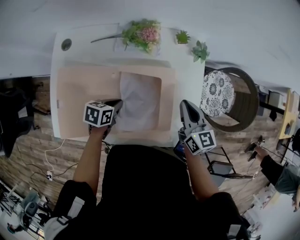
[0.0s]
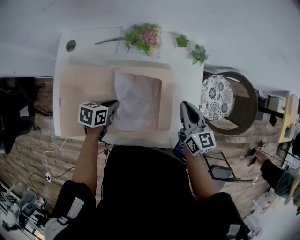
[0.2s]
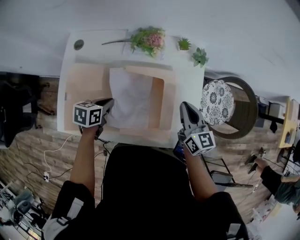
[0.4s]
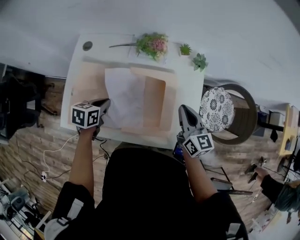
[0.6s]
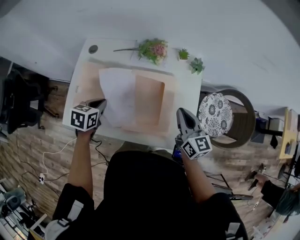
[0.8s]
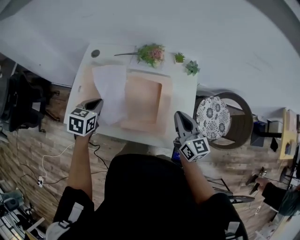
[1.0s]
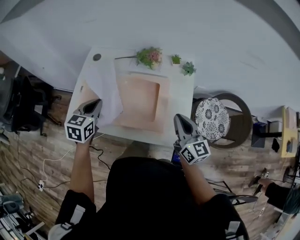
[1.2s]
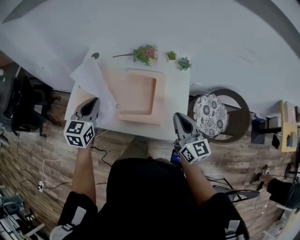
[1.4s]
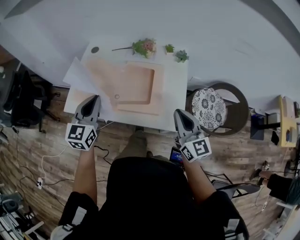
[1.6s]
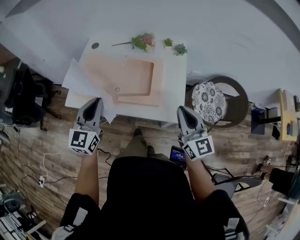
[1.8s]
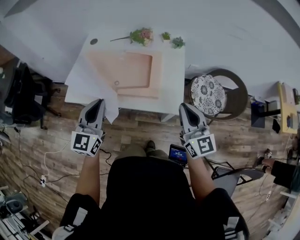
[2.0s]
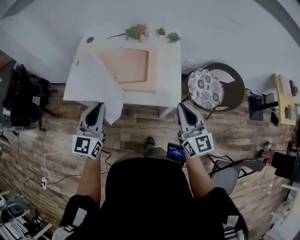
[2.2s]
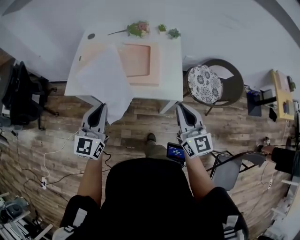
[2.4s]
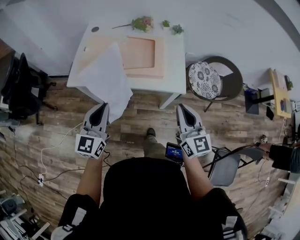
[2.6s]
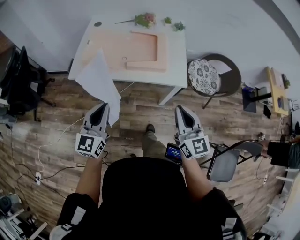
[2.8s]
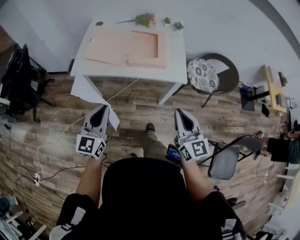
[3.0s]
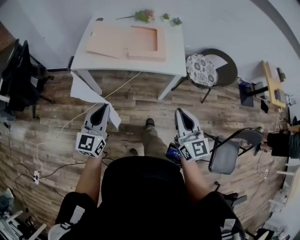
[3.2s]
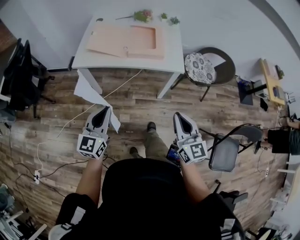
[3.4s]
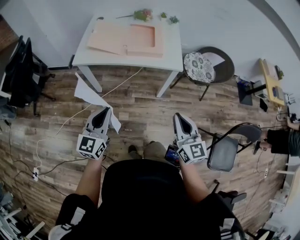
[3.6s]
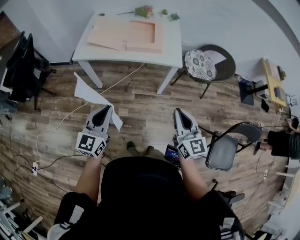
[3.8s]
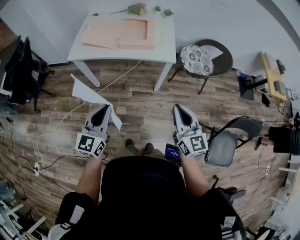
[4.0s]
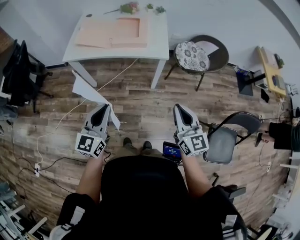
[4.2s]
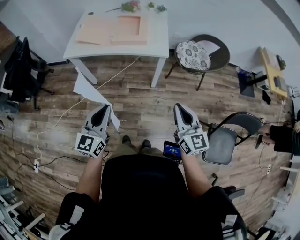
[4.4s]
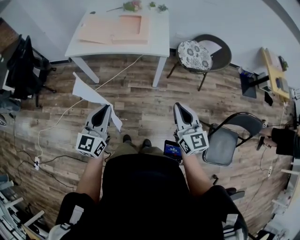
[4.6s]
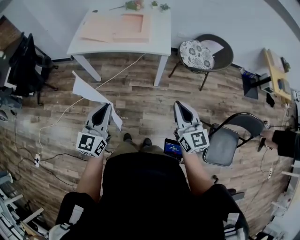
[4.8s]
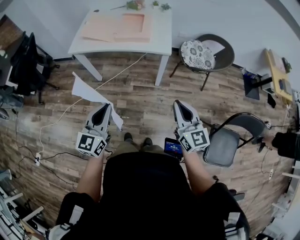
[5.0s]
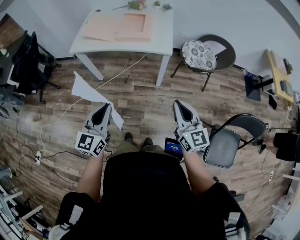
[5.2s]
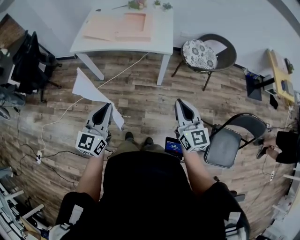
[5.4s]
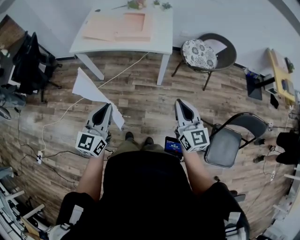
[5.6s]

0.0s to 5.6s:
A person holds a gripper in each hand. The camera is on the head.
0.0s to 1.4s: The left gripper moves upward, roughly 25 cm, and tips its fingers upward by approximately 30 degrees. The right gripper shifts by some 20 cm, and swivels approximately 20 degrees.
1.4s to 2.8s: Both grippers travel together backward, roughly 30 cm. The left gripper rotates approximately 20 degrees.
2.8s to 4.2s: Both grippers move backward and to the right, roughly 20 cm.
4.2s to 5.6s: The left gripper is displaced backward by about 5 cm.

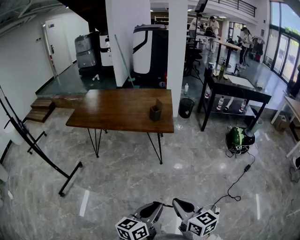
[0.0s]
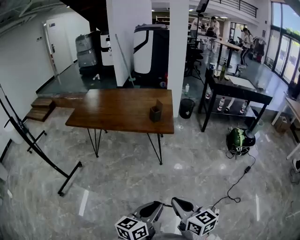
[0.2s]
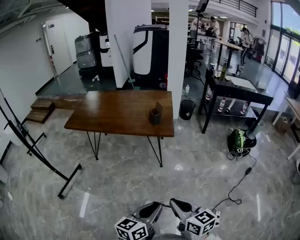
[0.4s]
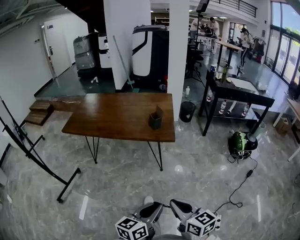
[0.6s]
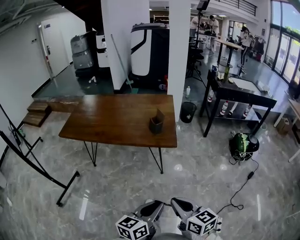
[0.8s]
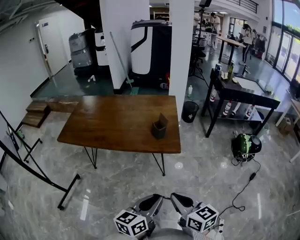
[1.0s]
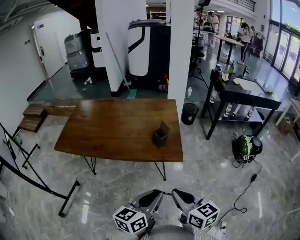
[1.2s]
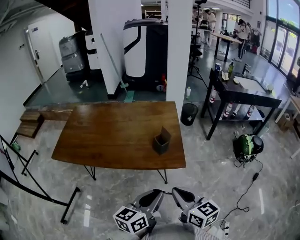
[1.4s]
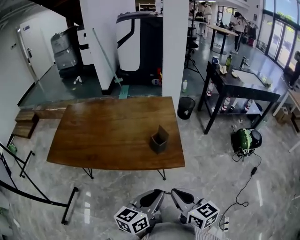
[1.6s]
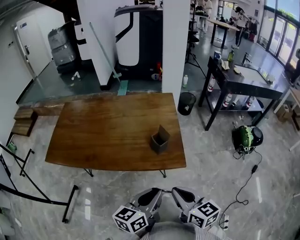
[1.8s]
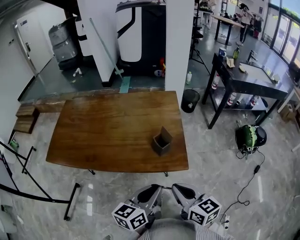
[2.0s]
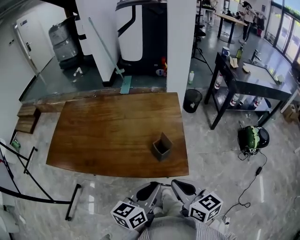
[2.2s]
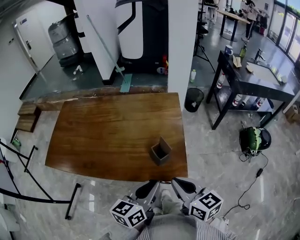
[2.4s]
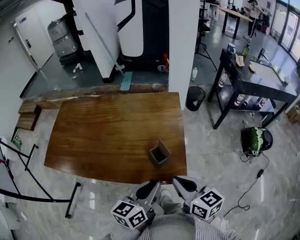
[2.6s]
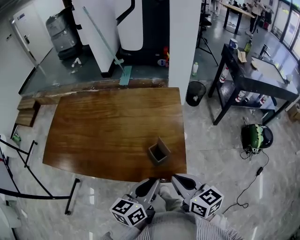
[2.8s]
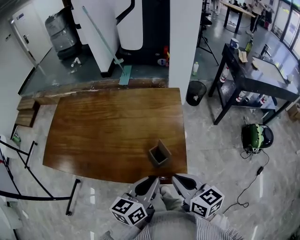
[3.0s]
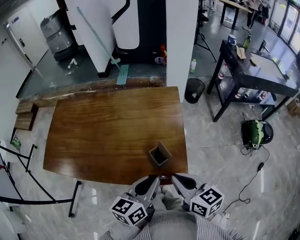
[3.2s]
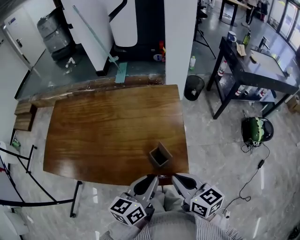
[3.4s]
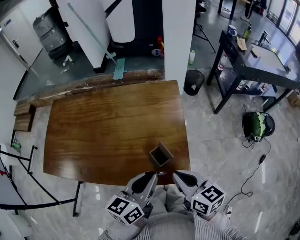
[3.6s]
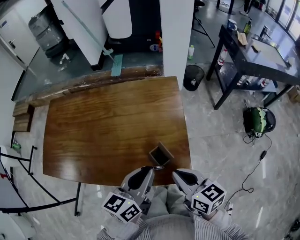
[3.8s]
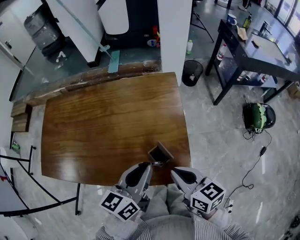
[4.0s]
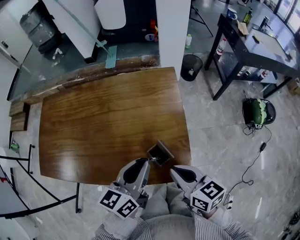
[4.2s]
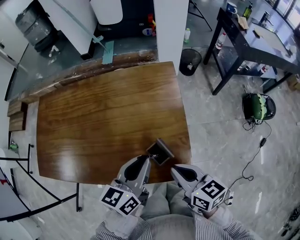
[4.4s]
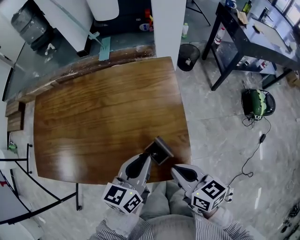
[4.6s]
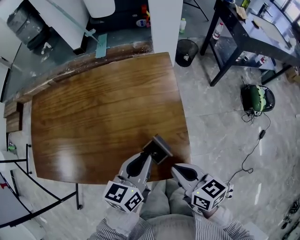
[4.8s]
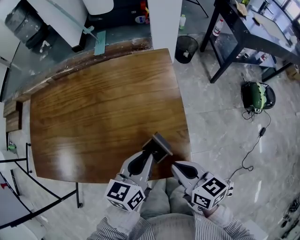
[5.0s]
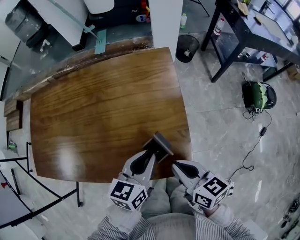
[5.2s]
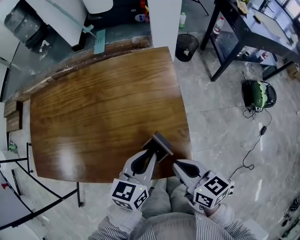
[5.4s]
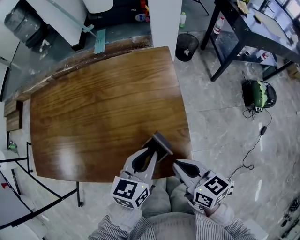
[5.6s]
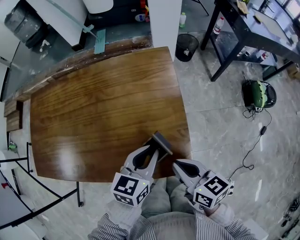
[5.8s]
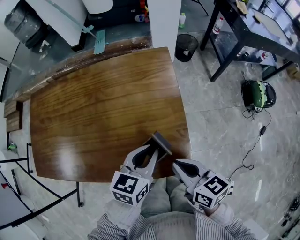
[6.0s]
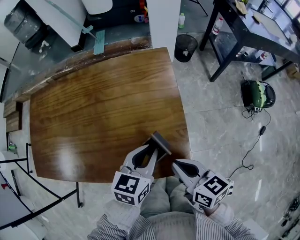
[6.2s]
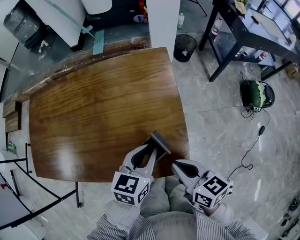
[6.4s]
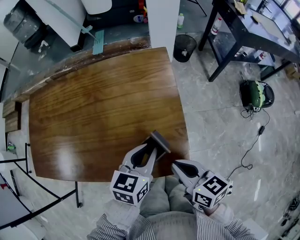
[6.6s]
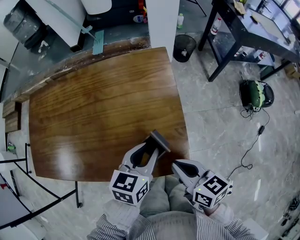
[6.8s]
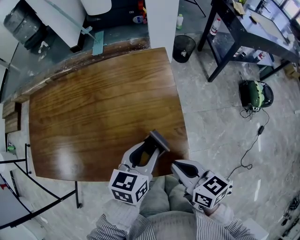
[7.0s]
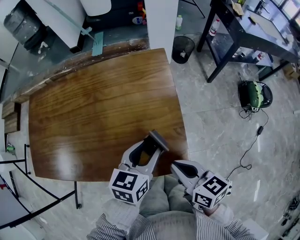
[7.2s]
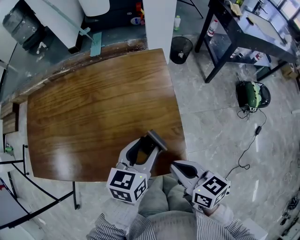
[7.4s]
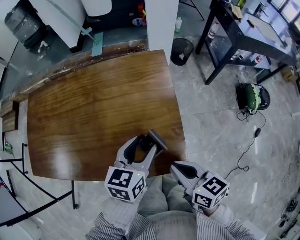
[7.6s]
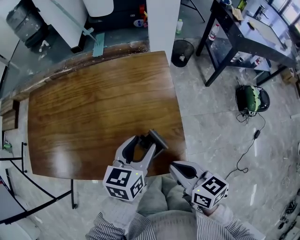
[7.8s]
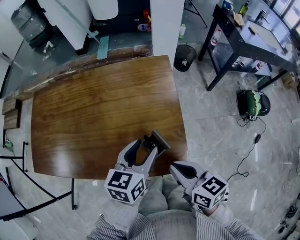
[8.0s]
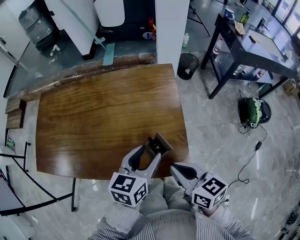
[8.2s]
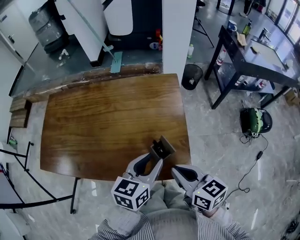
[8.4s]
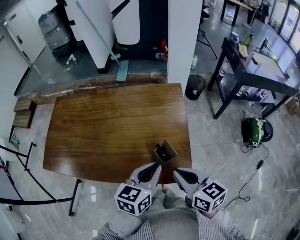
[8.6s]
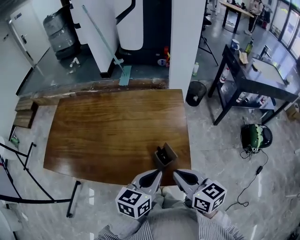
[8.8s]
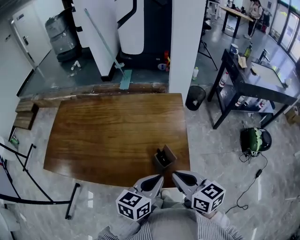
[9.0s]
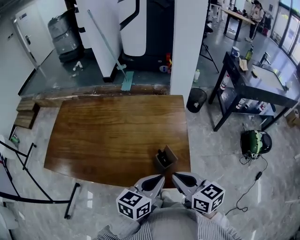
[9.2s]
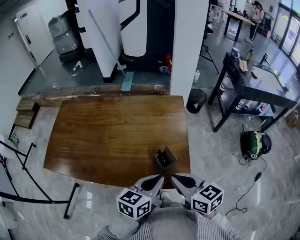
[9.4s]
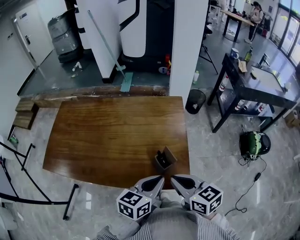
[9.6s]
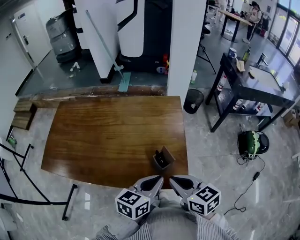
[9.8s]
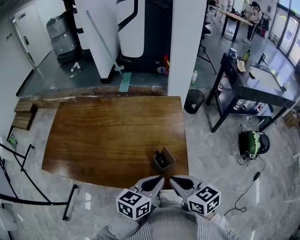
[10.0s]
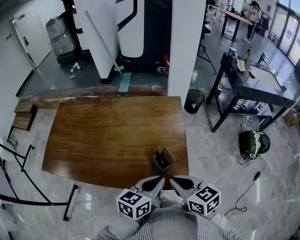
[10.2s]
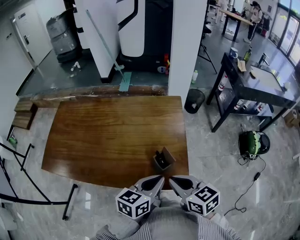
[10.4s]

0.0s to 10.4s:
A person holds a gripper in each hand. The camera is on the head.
0.0s to 1.4s: Both grippers travel together forward, approximately 35 cm.
1.4s to 3.0s: Both grippers move forward, some 20 cm.
3.0s to 4.4s: The right gripper goes about 10 cm downward and forward. The left gripper heads forward, covering approximately 10 cm.
4.4s to 6.0s: The left gripper shifts roughly 5 cm downward, and turns by about 20 degrees.
6.0s to 7.4s: The left gripper opens.
7.4s to 9.0s: The right gripper moves upward, some 10 cm; the left gripper shifts some 10 cm backward and upward, and closes.
9.0s to 10.4s: The grippers make only small movements.

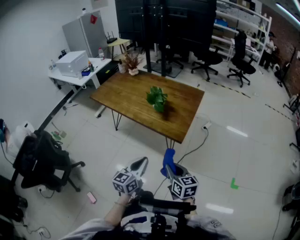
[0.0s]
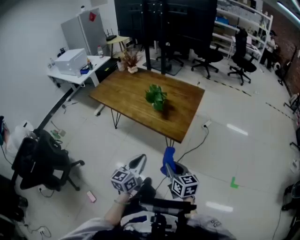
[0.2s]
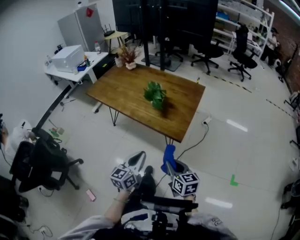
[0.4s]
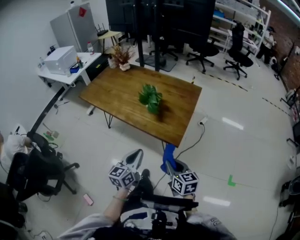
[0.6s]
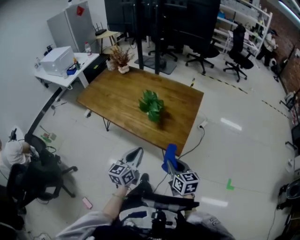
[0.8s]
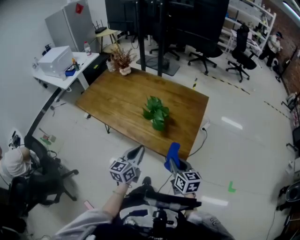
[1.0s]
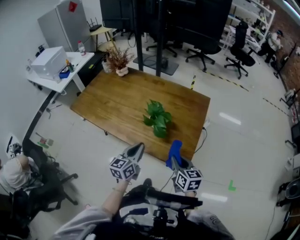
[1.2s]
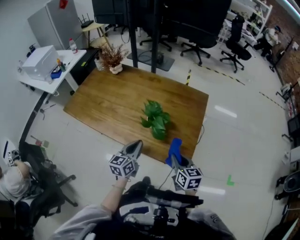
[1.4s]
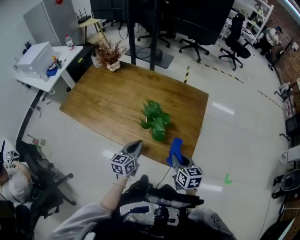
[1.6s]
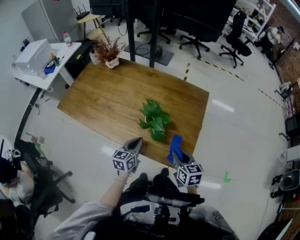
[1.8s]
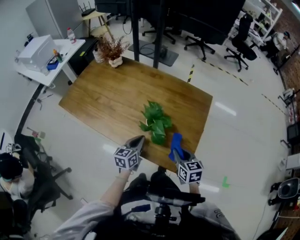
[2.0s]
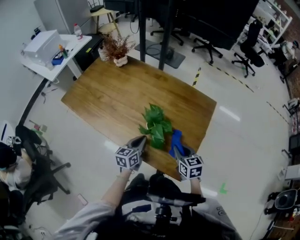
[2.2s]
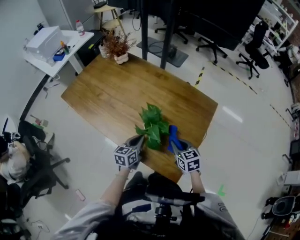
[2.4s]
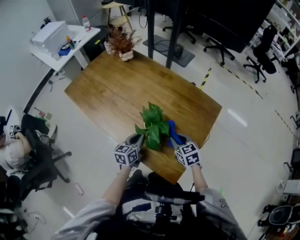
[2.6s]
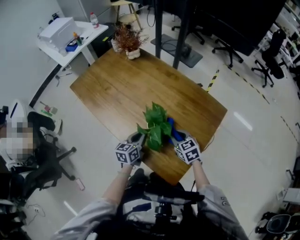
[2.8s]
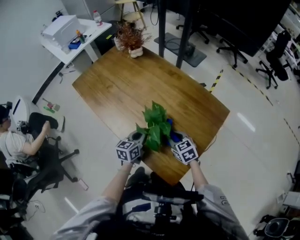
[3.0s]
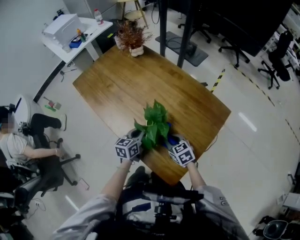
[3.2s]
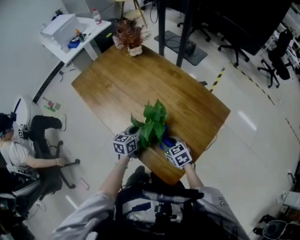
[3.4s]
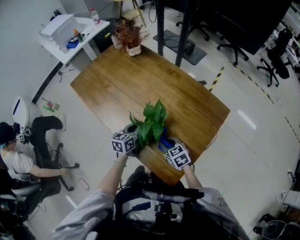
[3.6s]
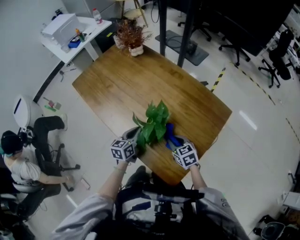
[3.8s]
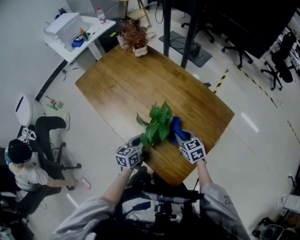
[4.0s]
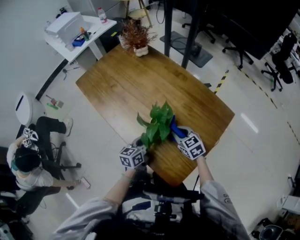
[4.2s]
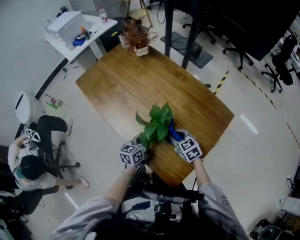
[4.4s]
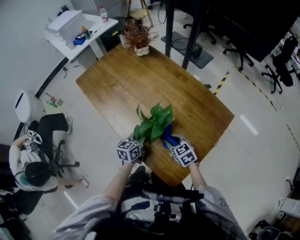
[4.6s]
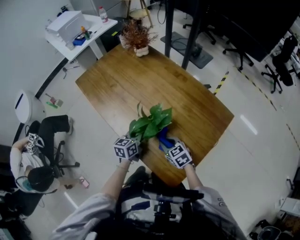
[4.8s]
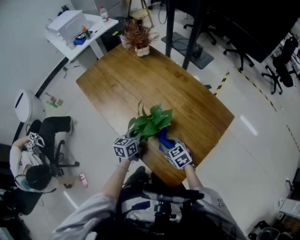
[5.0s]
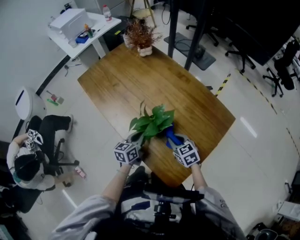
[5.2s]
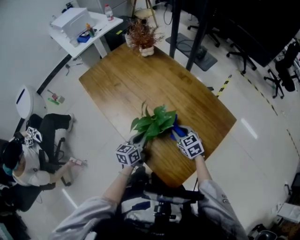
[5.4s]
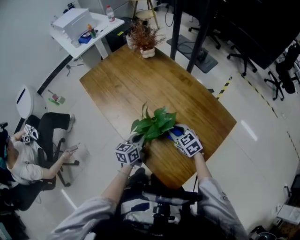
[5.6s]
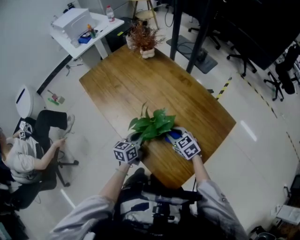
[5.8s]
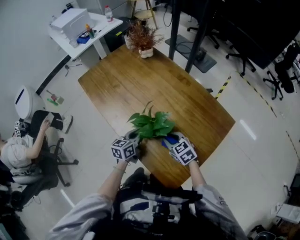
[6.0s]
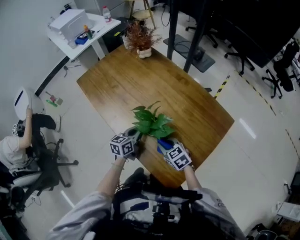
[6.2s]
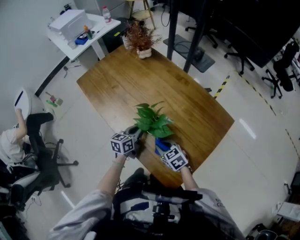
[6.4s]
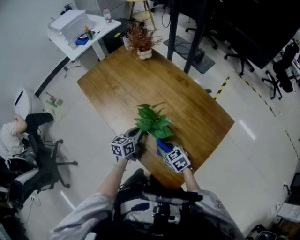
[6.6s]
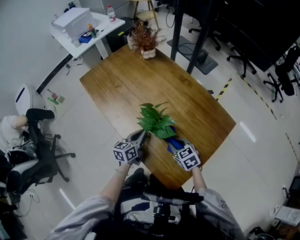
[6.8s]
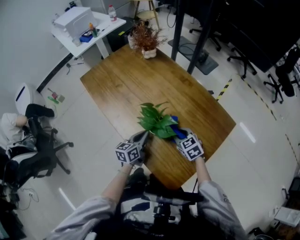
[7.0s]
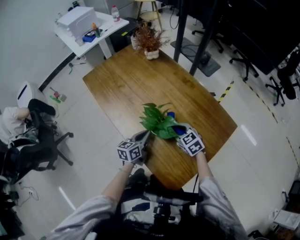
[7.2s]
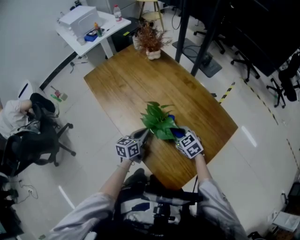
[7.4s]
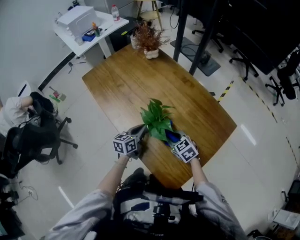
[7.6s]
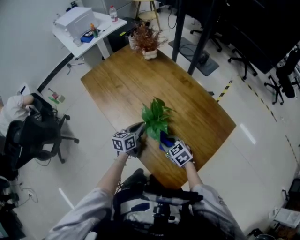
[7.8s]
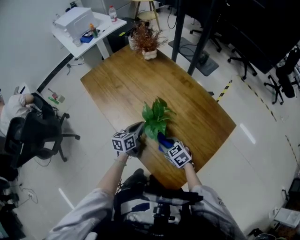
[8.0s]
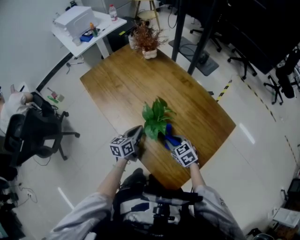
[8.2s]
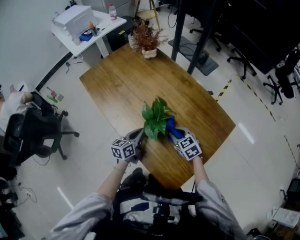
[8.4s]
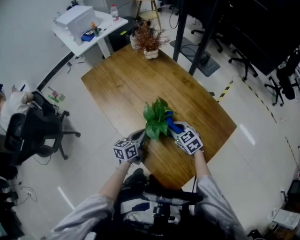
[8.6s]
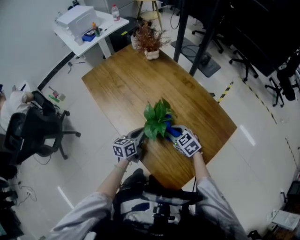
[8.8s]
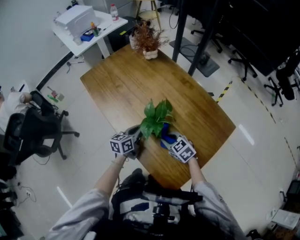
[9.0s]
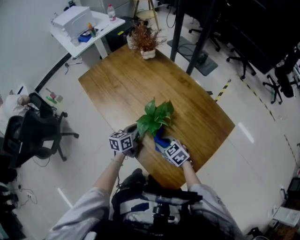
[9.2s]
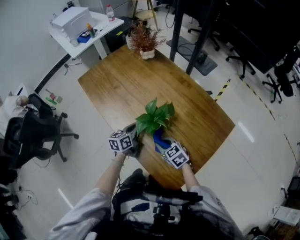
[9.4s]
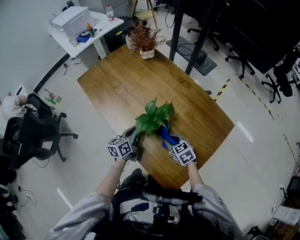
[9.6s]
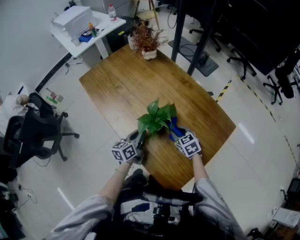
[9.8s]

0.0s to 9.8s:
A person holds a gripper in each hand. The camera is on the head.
0.0s to 1.4s: The two grippers go roughly 35 cm forward.
1.4s to 2.8s: The left gripper moves forward and downward, about 10 cm, while the right gripper heads forward, covering about 20 cm, and swivels about 40 degrees.
5.6s to 7.0s: The right gripper goes backward and returns, roughly 10 cm each way.
8.4s to 9.8s: The right gripper moves roughly 5 cm to the left and comes back.
